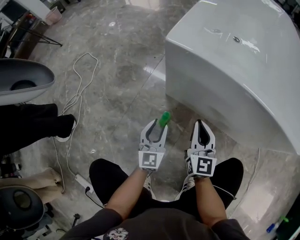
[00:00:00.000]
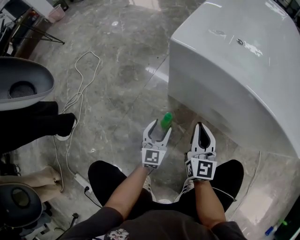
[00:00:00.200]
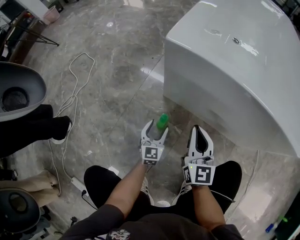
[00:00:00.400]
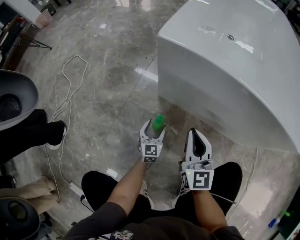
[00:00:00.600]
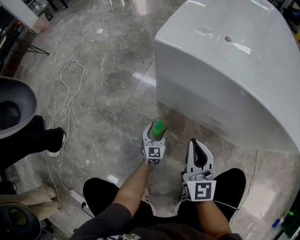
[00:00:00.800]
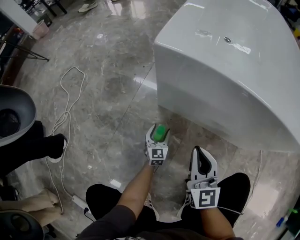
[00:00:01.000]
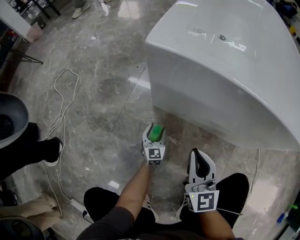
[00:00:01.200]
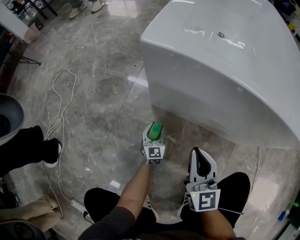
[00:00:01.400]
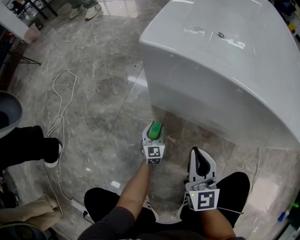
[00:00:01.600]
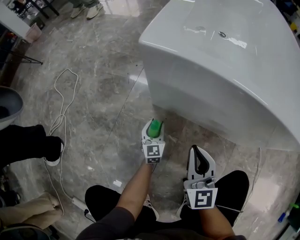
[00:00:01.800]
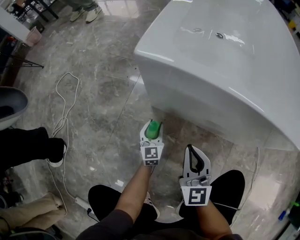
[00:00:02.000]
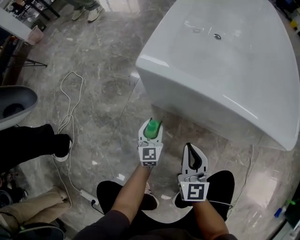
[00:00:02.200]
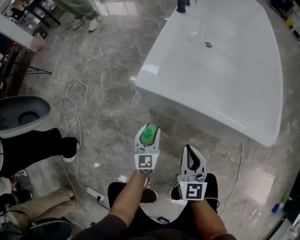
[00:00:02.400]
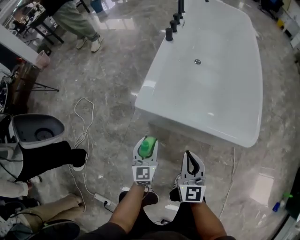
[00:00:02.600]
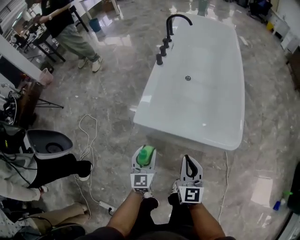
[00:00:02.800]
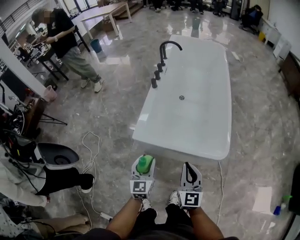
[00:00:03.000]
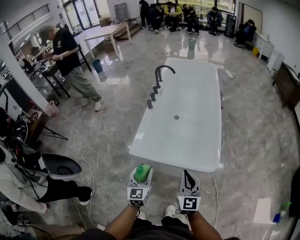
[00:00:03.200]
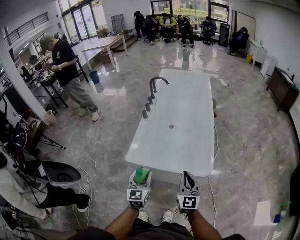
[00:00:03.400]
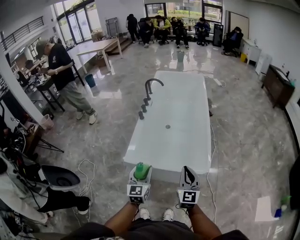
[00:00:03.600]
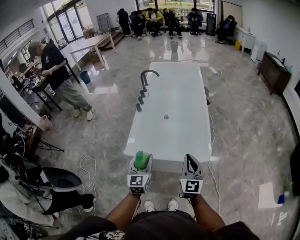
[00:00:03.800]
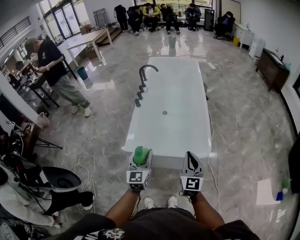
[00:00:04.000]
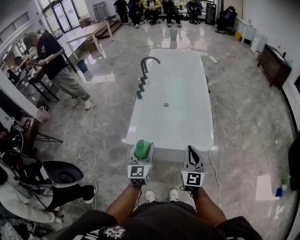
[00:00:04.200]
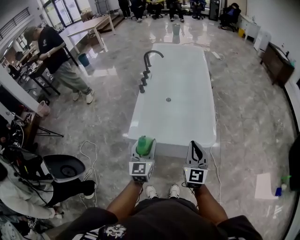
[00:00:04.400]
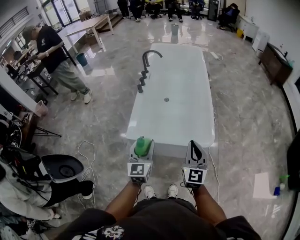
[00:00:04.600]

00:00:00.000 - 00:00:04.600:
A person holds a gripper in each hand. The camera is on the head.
00:00:00.000 - 00:00:01.600: The left gripper moves downward, about 20 cm, and opens, then closes once more.
00:00:01.600 - 00:00:03.000: Both grippers travel together upward, about 70 cm.
00:00:03.000 - 00:00:04.600: The left gripper is displaced upward by approximately 20 cm; the right gripper goes about 15 cm upward and to the right.

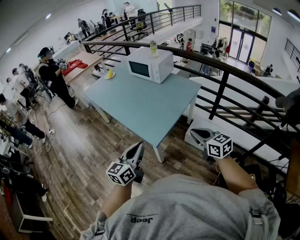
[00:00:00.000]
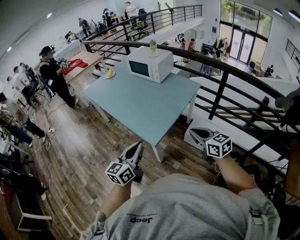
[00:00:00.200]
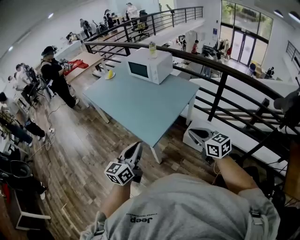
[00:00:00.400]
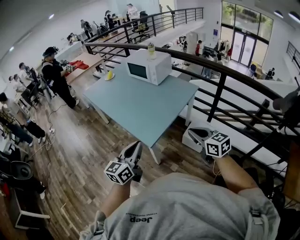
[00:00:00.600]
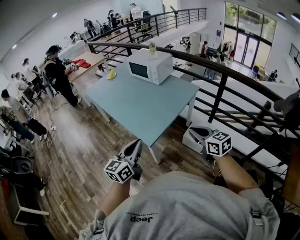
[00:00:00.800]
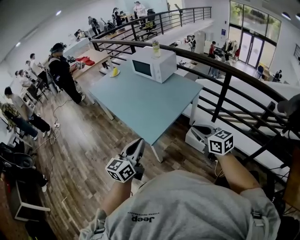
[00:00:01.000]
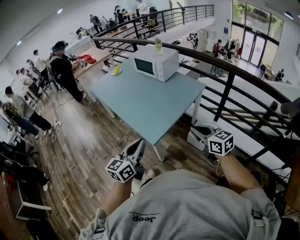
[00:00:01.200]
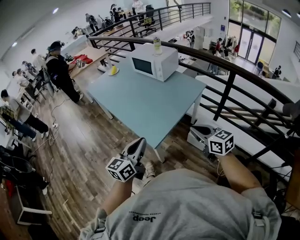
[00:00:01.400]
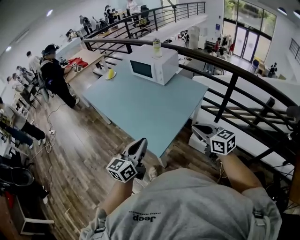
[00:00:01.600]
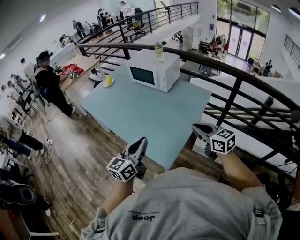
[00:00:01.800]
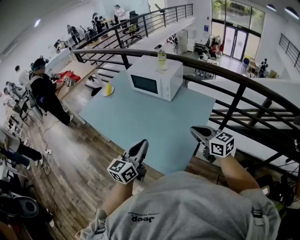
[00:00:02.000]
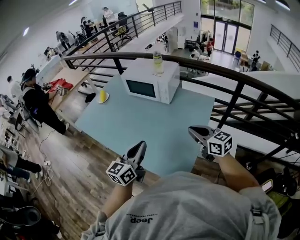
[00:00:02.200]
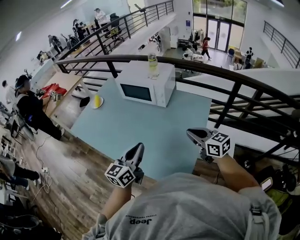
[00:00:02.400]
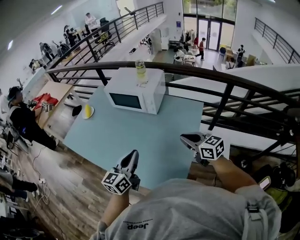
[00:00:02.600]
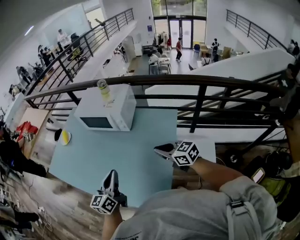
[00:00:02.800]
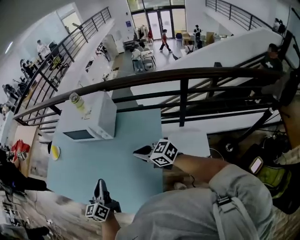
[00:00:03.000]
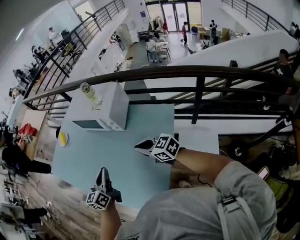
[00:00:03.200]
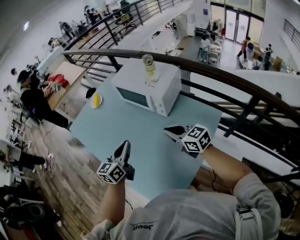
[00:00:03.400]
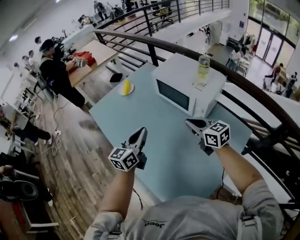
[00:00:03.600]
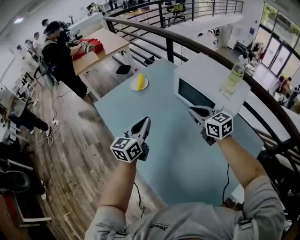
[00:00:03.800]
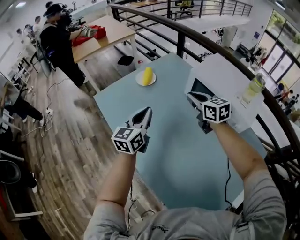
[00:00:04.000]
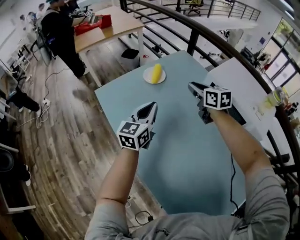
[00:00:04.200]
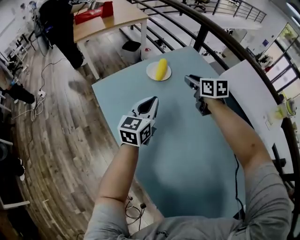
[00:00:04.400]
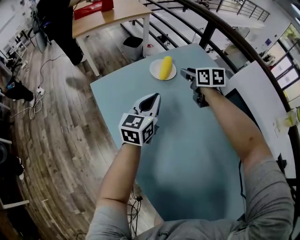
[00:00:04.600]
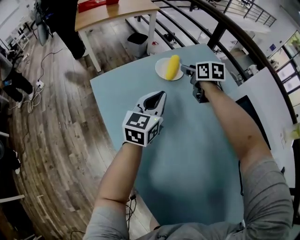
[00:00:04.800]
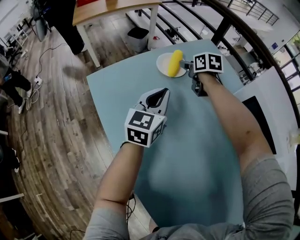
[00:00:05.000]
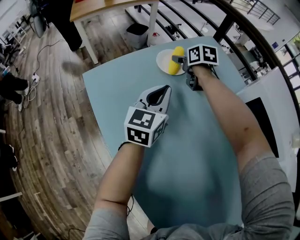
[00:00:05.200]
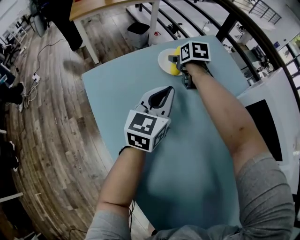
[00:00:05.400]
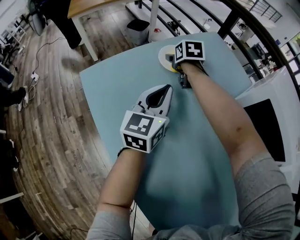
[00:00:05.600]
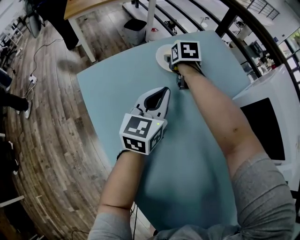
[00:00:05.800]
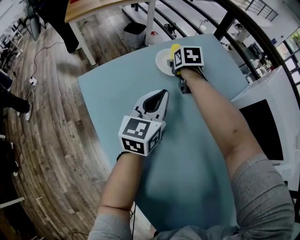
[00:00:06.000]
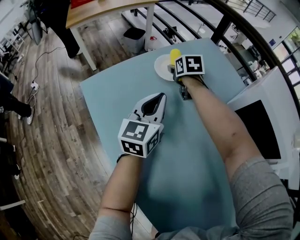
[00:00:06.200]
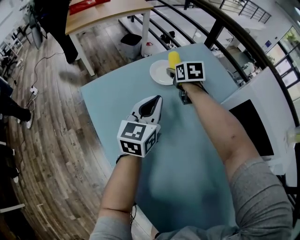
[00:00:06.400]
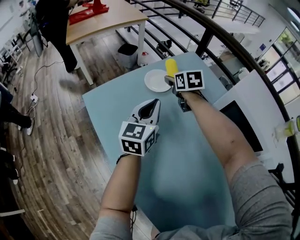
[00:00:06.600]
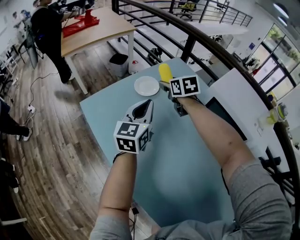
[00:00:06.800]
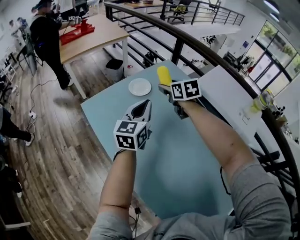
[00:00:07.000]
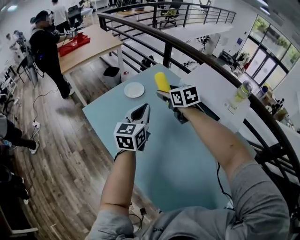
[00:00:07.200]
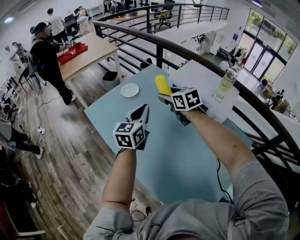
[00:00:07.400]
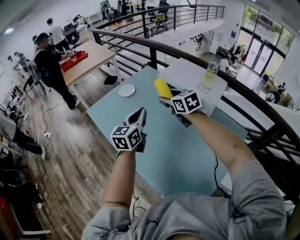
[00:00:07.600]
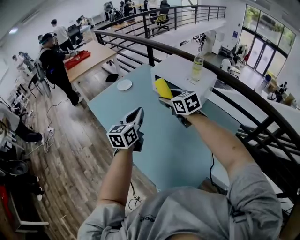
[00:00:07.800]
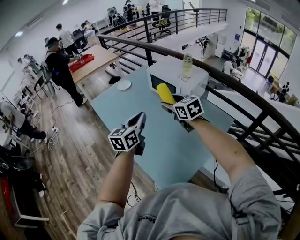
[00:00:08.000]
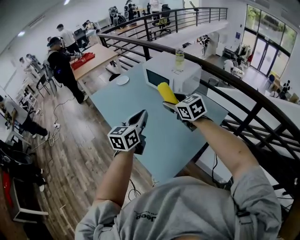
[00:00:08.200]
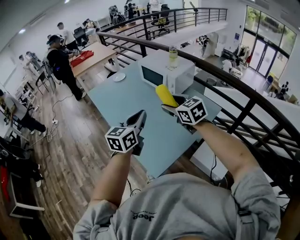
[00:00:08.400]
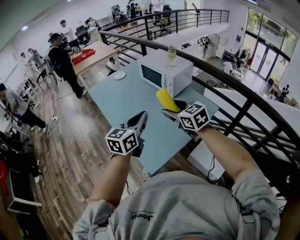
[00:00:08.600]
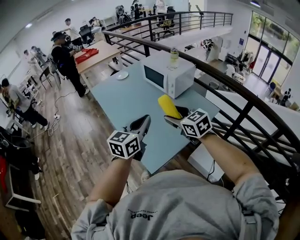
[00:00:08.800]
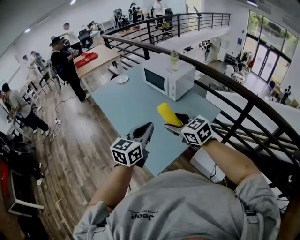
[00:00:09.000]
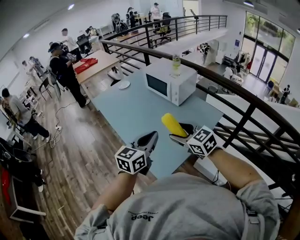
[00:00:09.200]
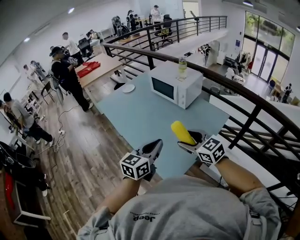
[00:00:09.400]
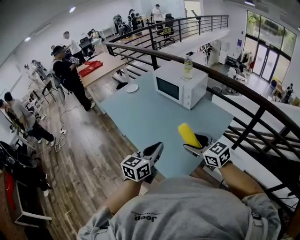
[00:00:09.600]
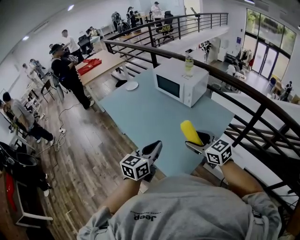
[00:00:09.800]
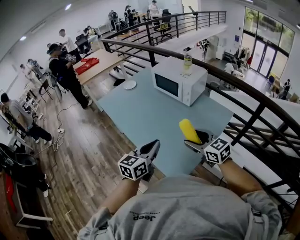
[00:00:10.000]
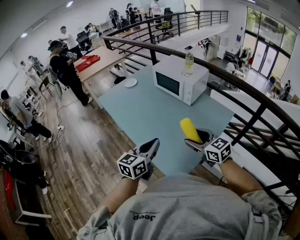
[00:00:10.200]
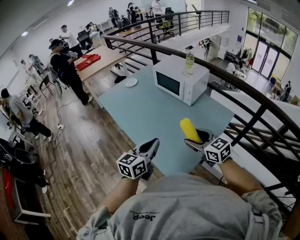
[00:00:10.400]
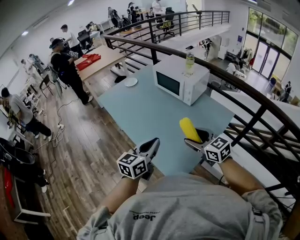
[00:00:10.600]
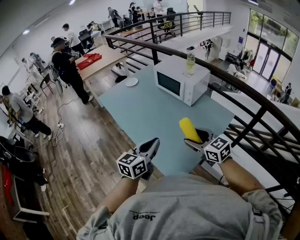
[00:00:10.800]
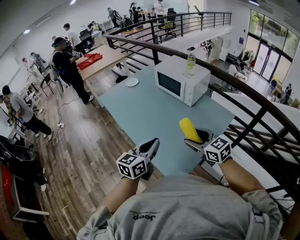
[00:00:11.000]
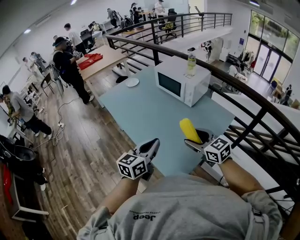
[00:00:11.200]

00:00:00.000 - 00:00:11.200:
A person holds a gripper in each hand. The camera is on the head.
00:00:00.000 - 00:00:01.600: Both grippers move forward, roughly 10 cm.
00:00:01.600 - 00:00:03.200: The grippers both shift forward by roughly 35 cm.
00:00:03.200 - 00:00:04.800: The pair of grippers is taken forward and to the left, some 70 cm. The right gripper rotates roughly 20 degrees, and opens up, while the left gripper turns by roughly 20 degrees.
00:00:04.800 - 00:00:06.400: The right gripper travels downward by about 5 cm.
00:00:06.400 - 00:00:08.000: Both grippers are carried backward and to the right, roughly 60 cm. The two grippers go approximately 30 cm upward. The right gripper changes its angle by some 20 degrees.
00:00:08.000 - 00:00:09.600: The grippers both shift backward by about 25 cm.
00:00:09.600 - 00:00:11.200: The grippers make only small movements.

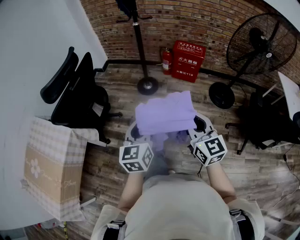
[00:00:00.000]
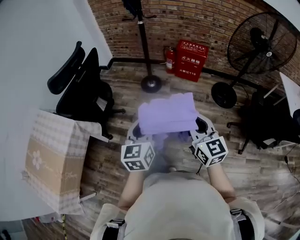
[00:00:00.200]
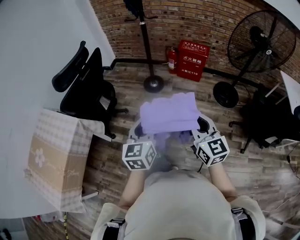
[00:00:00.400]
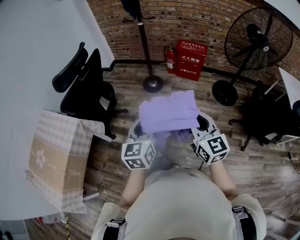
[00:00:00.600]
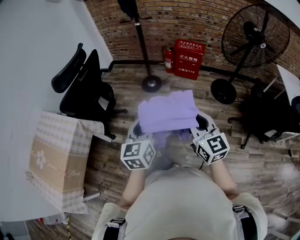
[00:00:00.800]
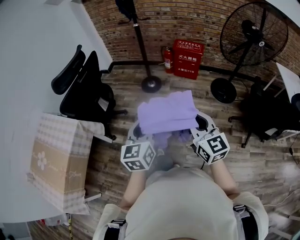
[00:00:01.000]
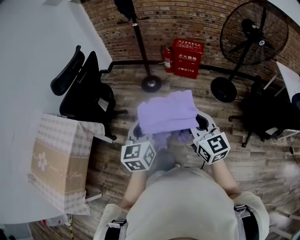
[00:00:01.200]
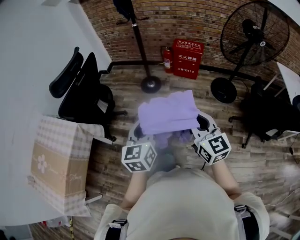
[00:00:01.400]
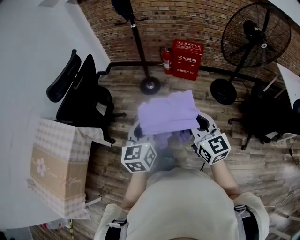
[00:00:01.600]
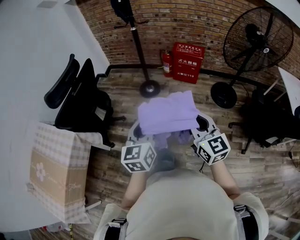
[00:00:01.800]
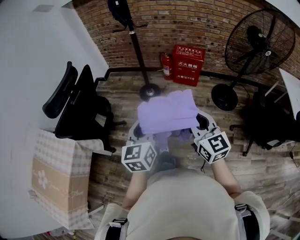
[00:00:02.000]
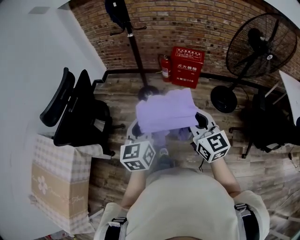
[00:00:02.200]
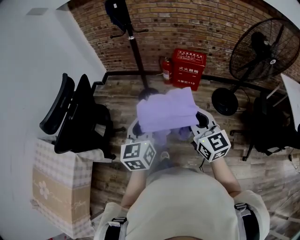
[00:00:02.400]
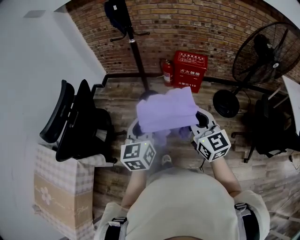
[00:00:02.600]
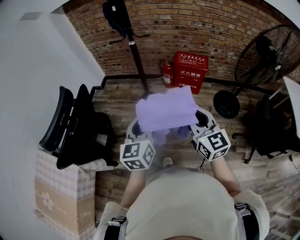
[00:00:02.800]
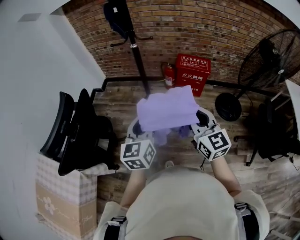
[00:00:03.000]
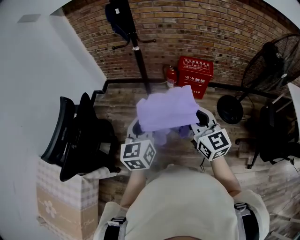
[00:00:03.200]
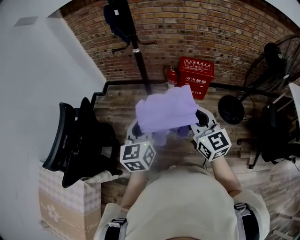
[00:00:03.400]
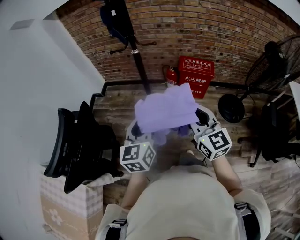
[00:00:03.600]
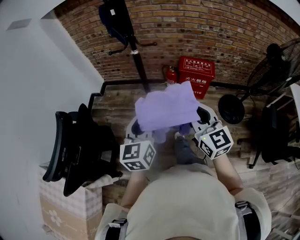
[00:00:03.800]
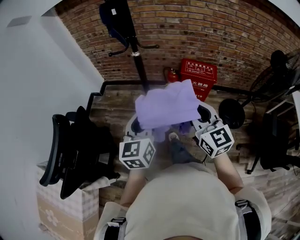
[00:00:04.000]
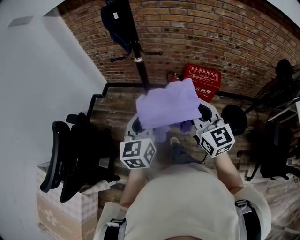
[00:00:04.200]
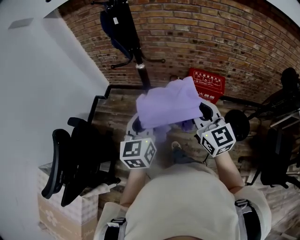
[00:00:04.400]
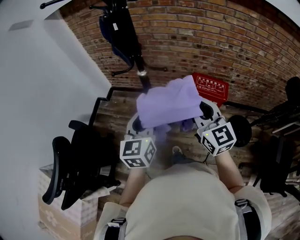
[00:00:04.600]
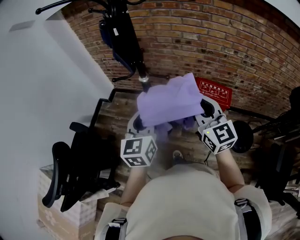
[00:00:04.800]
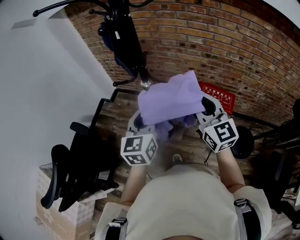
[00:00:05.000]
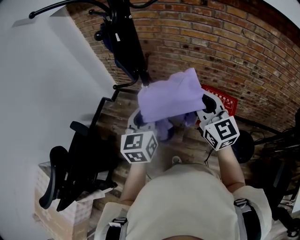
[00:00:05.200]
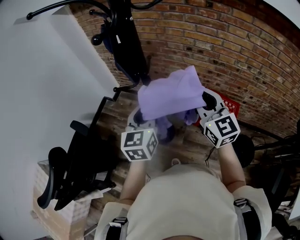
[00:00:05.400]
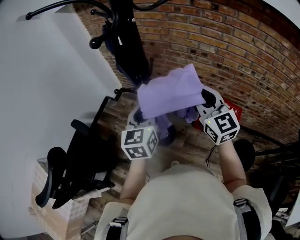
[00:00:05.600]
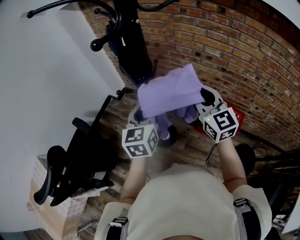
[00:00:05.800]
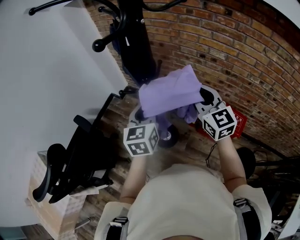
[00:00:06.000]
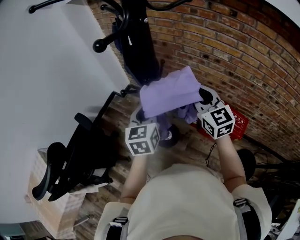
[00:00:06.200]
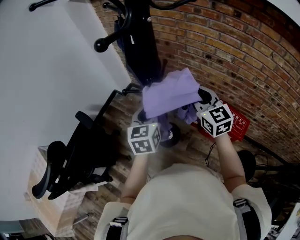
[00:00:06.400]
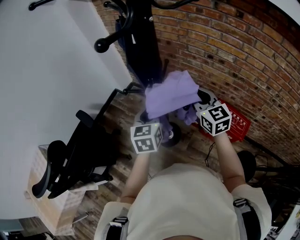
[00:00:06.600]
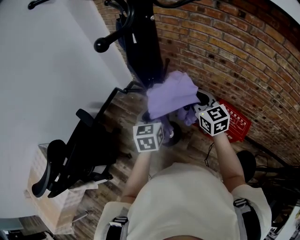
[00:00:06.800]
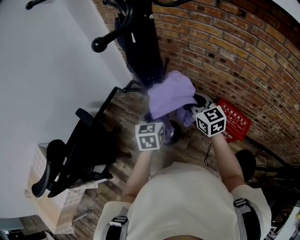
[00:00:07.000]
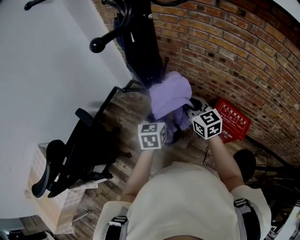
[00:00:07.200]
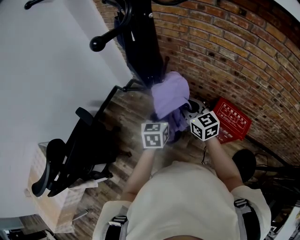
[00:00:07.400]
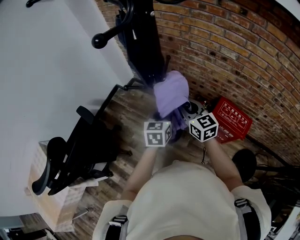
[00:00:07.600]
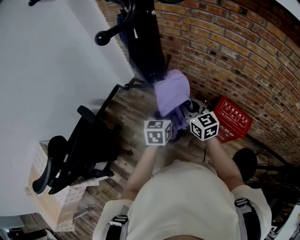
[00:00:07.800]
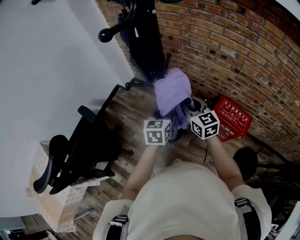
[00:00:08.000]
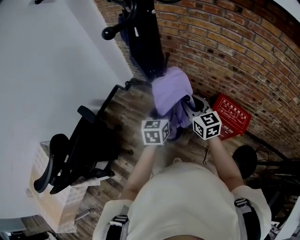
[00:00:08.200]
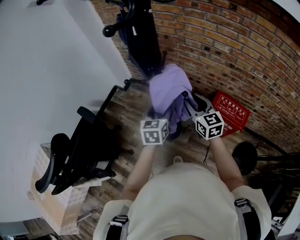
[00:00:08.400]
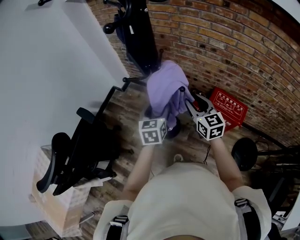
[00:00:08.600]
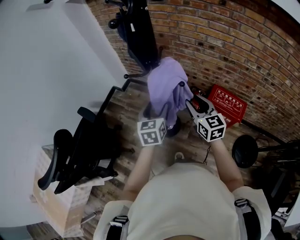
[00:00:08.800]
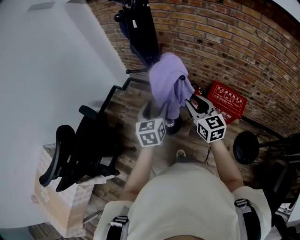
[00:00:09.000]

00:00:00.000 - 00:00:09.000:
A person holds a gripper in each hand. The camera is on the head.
00:00:00.000 - 00:00:01.600: The right gripper shifts about 5 cm backward.
00:00:01.600 - 00:00:03.000: The two grippers go some 30 cm forward.
00:00:03.000 - 00:00:04.400: The two grippers go about 25 cm forward.
00:00:04.400 - 00:00:06.000: Both grippers move forward, approximately 25 cm.
00:00:06.000 - 00:00:07.600: The right gripper moves downward and to the left, roughly 15 cm, while the left gripper moves downward, roughly 15 cm.
00:00:07.600 - 00:00:09.000: The right gripper travels backward by approximately 15 cm. The left gripper travels backward, to the left and upward by approximately 10 cm, and opens.
